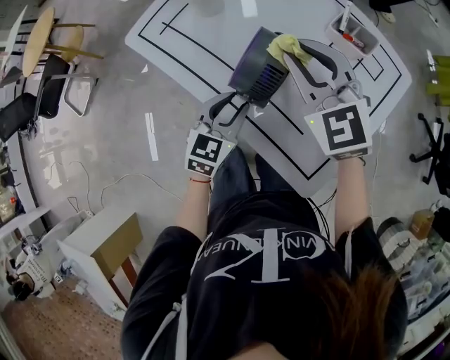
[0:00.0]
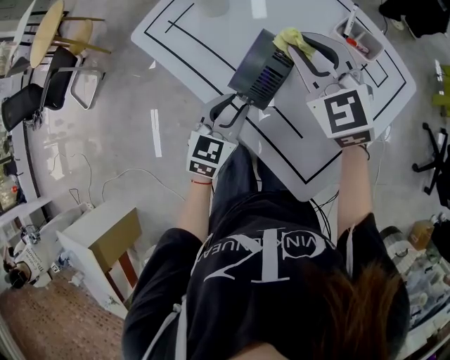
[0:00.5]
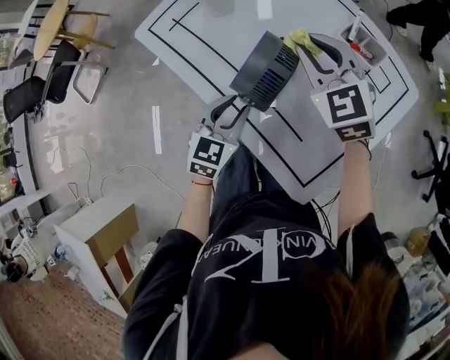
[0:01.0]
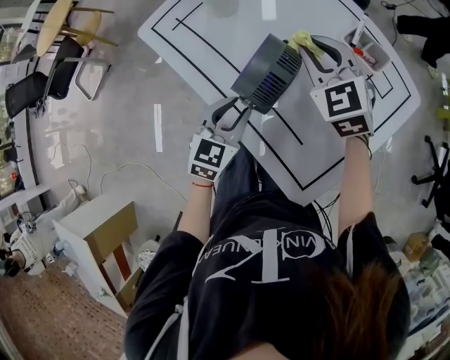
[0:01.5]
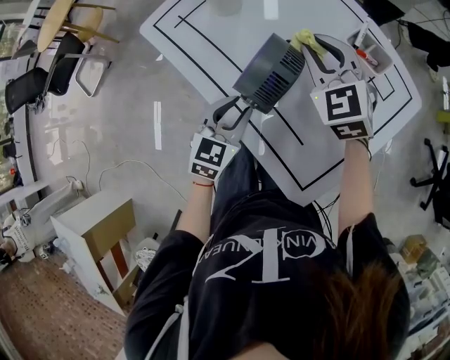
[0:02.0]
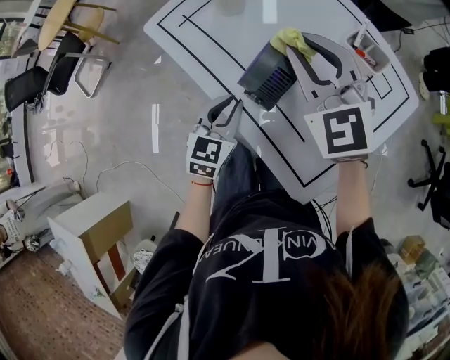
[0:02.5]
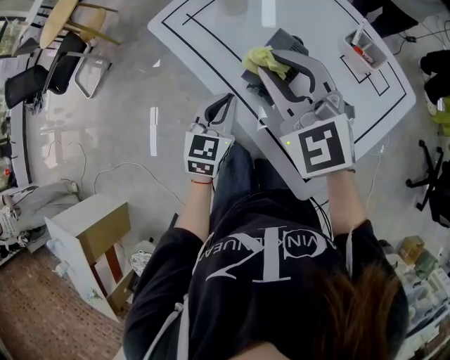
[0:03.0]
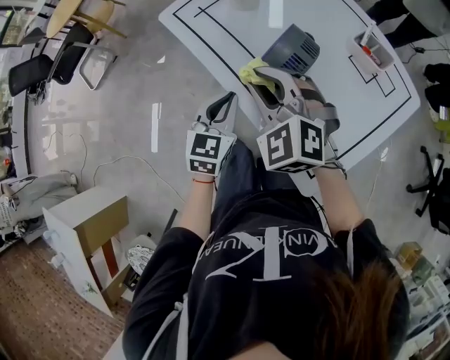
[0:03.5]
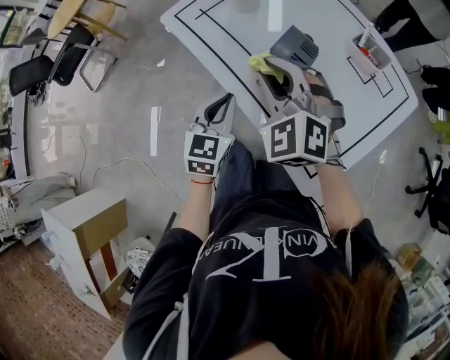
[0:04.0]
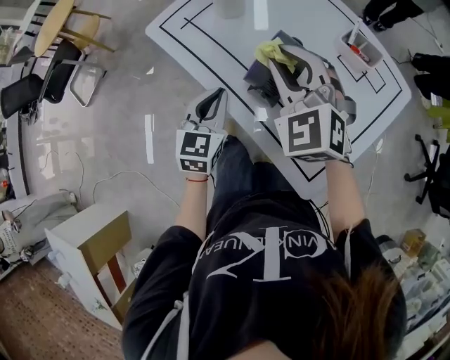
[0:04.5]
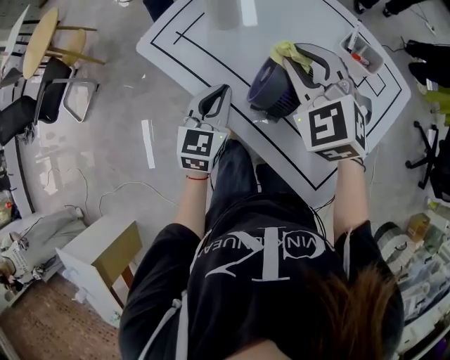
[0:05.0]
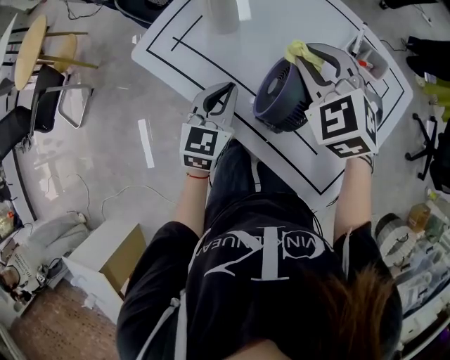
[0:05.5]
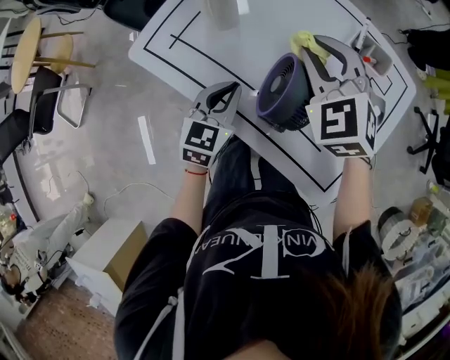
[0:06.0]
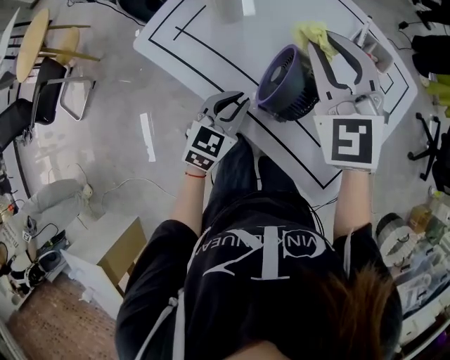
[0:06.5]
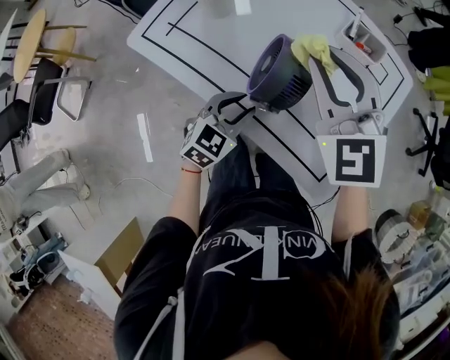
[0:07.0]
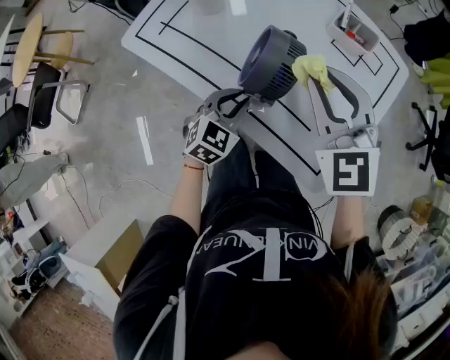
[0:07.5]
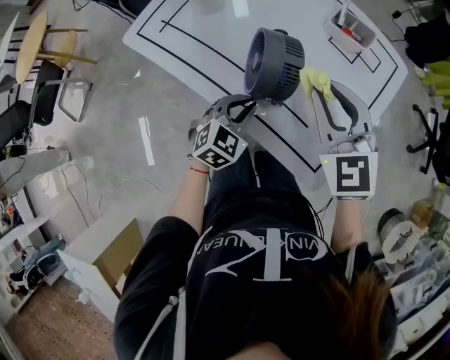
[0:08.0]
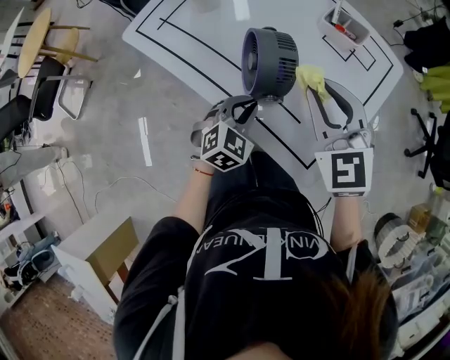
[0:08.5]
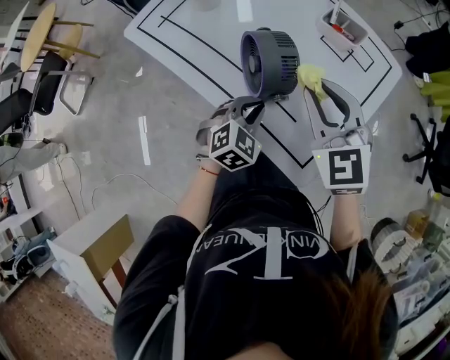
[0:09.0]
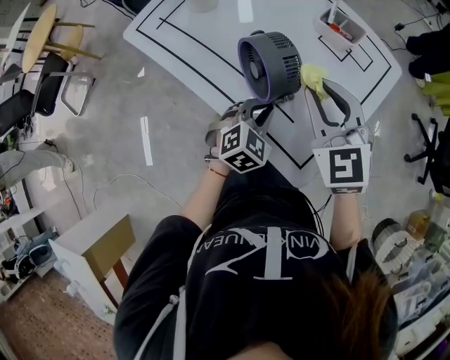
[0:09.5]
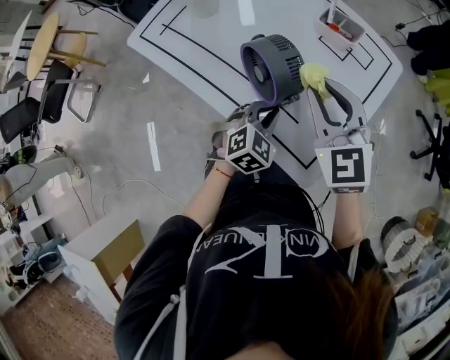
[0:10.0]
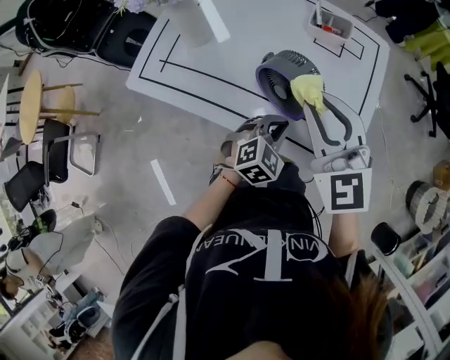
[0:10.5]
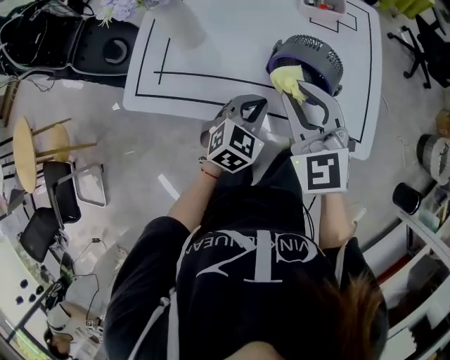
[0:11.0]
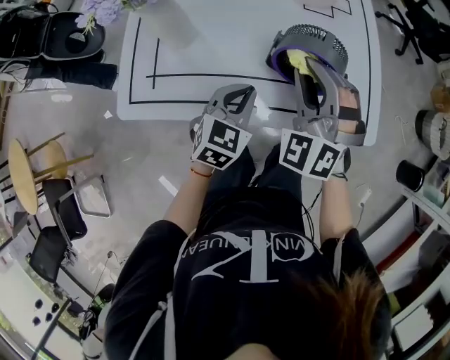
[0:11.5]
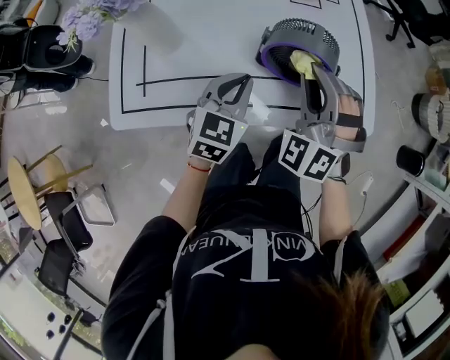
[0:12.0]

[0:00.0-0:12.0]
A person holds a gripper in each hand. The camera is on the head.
0:00.0 to 0:02.0: The right gripper shifts some 5 cm forward.
0:02.0 to 0:04.0: The right gripper moves to the left and backward, about 20 cm, while the left gripper travels to the left by approximately 5 cm, and closes.
0:04.0 to 0:06.0: The right gripper is displaced forward and to the right by approximately 15 cm, and rotates about 20 degrees. Meanwhile the left gripper goes approximately 15 cm forward, and turns by about 20 degrees.
0:06.0 to 0:08.0: The right gripper is displaced backward and to the right by roughly 15 cm; the left gripper heads to the right, backward and downward, covering approximately 15 cm, rotates about 20 degrees, and opens, then closes once more.
0:08.0 to 0:10.0: The left gripper travels to the right by some 10 cm.
0:10.0 to 0:12.0: The right gripper moves about 10 cm, and rotates roughly 60 degrees, while the left gripper ends up approximately 20 cm from where it was, and rotates some 30 degrees.

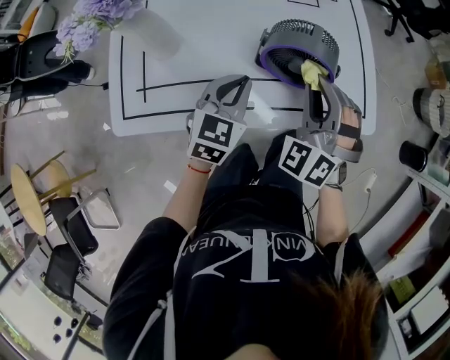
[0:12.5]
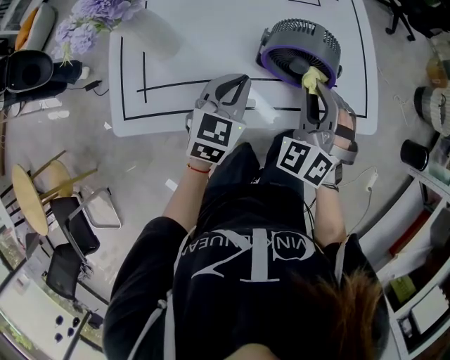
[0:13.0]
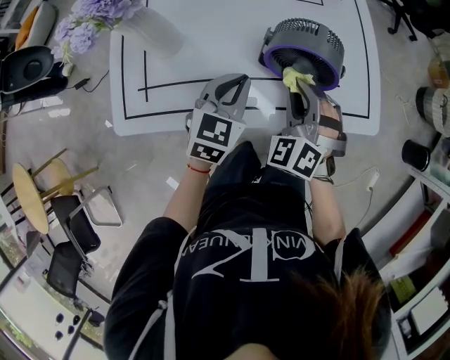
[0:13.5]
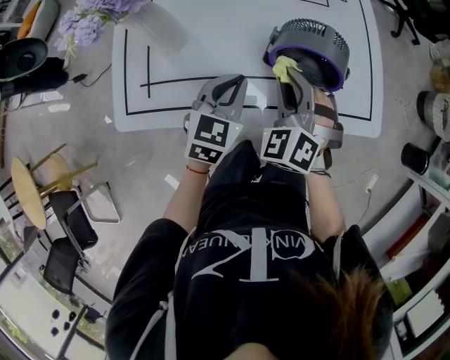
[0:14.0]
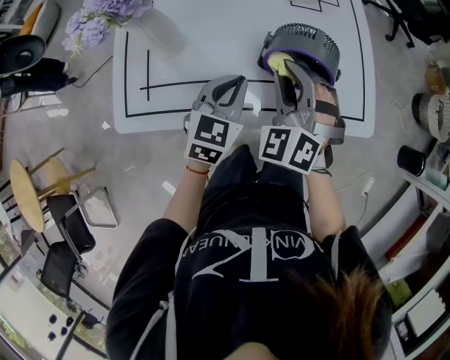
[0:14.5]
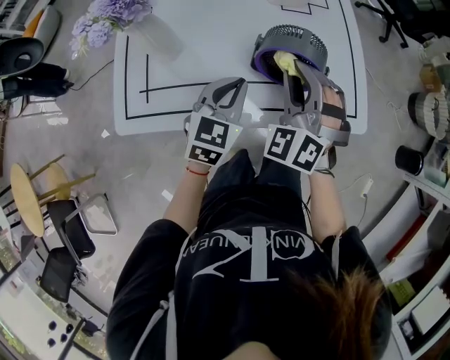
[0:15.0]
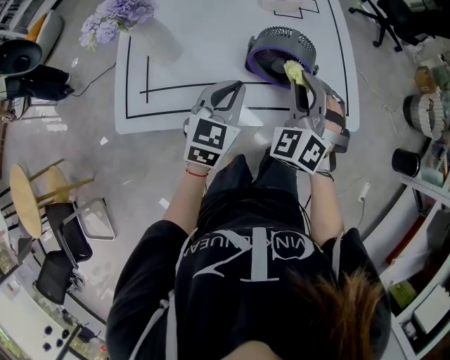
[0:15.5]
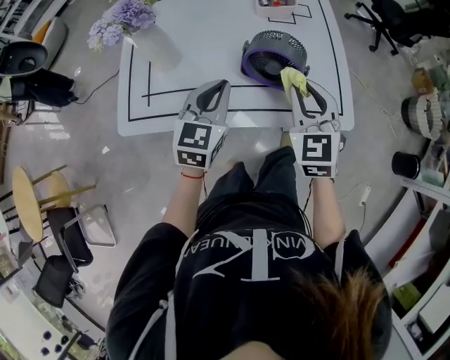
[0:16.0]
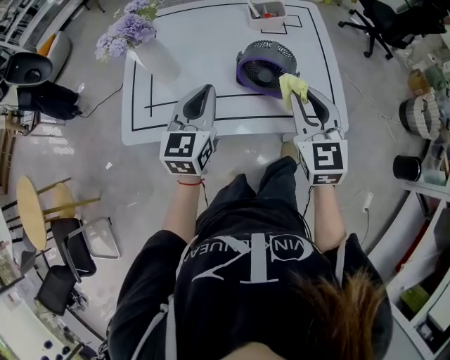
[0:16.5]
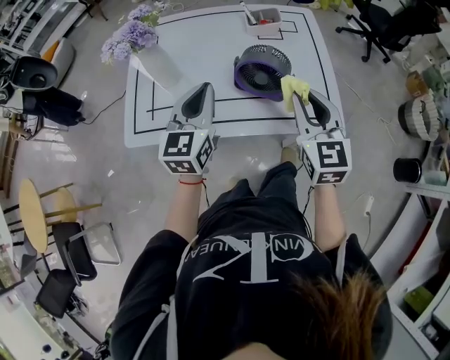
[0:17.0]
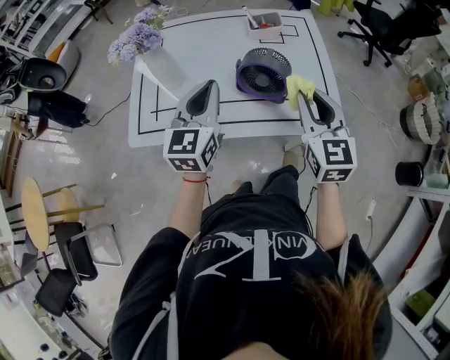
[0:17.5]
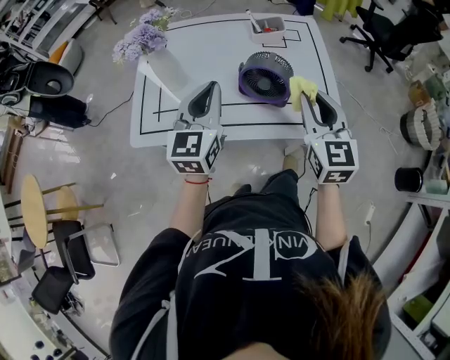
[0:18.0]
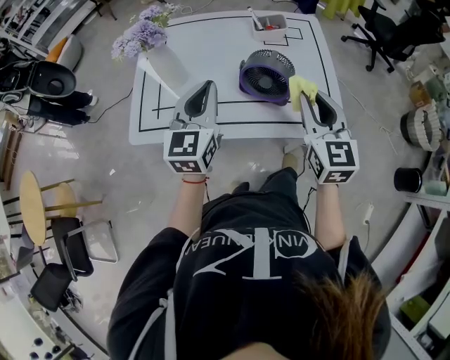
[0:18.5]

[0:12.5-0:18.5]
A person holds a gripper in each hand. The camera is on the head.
0:12.5 to 0:14.5: The right gripper is displaced to the left by some 5 cm.
0:14.5 to 0:16.5: The right gripper heads to the right, upward and backward, covering roughly 15 cm, and rotates around the line of its fingers by roughly 40 degrees, clockwise from behind. Meanwhile the left gripper moves upward, roughly 10 cm, and swivels approximately 20 degrees.
0:16.5 to 0:18.5: The left gripper travels upward by some 5 cm.

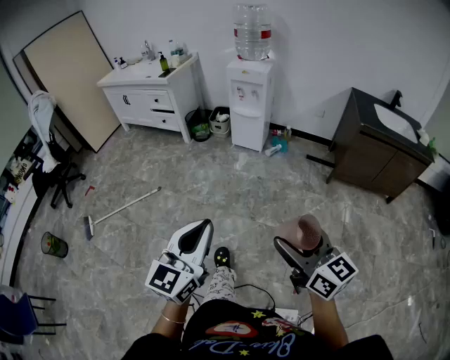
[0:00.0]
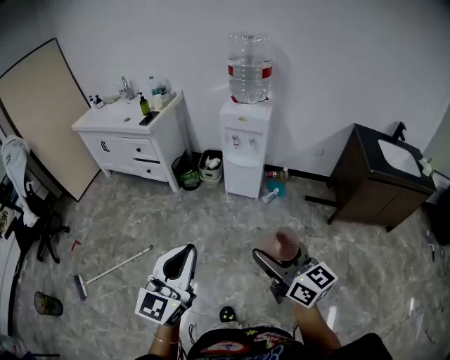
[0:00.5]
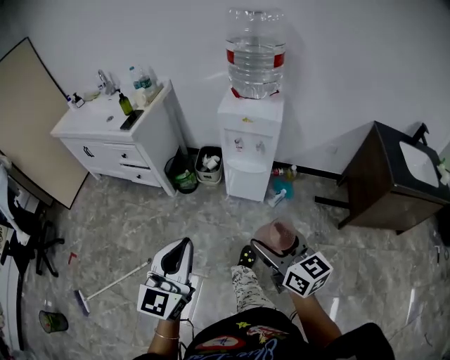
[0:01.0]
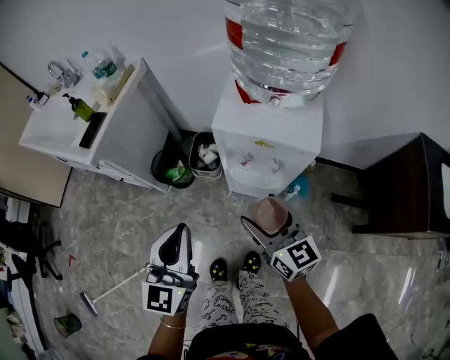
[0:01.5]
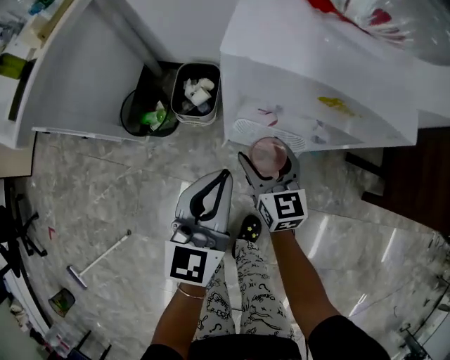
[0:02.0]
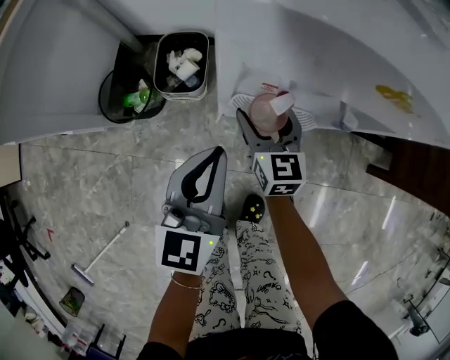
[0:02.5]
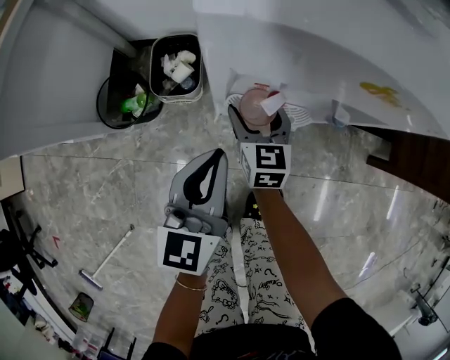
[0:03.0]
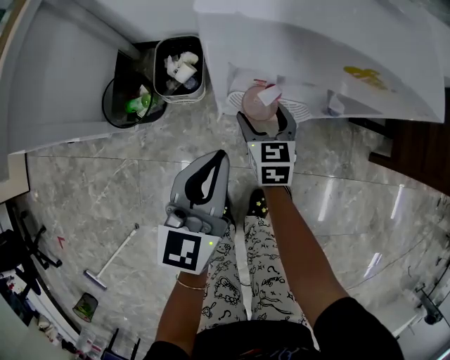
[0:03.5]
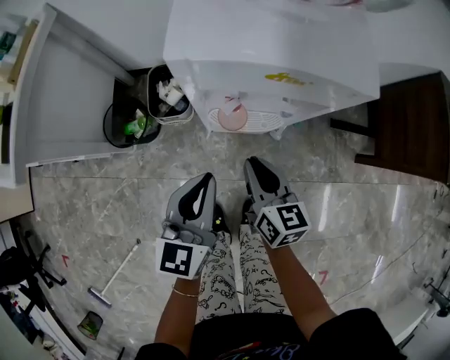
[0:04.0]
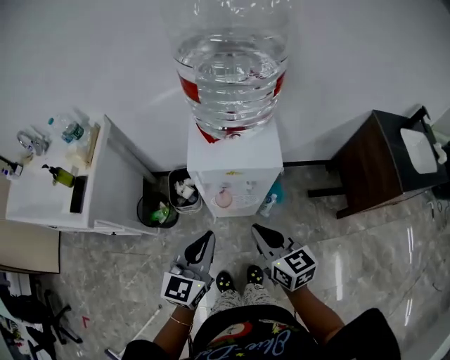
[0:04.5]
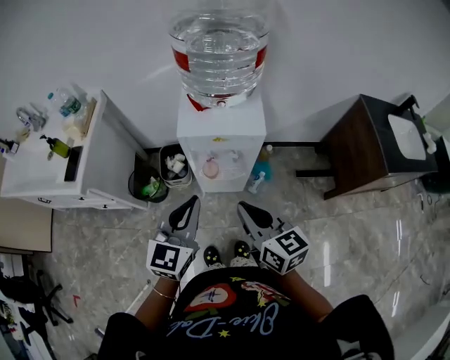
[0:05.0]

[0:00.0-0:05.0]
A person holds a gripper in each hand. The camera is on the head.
0:00.0 to 0:02.5: The two grippers travel together, forward, about 1 m. The right gripper goes about 50 cm downward, and rotates approximately 30 degrees.
0:02.5 to 0:05.0: The right gripper travels upward and backward by about 50 cm, and closes, while the left gripper travels upward by about 30 cm.

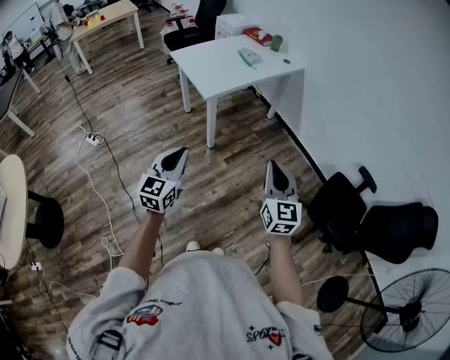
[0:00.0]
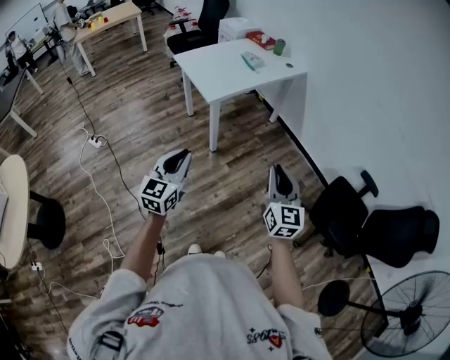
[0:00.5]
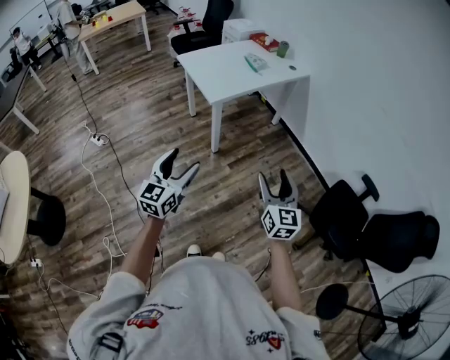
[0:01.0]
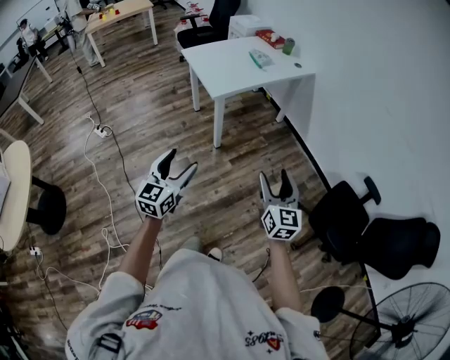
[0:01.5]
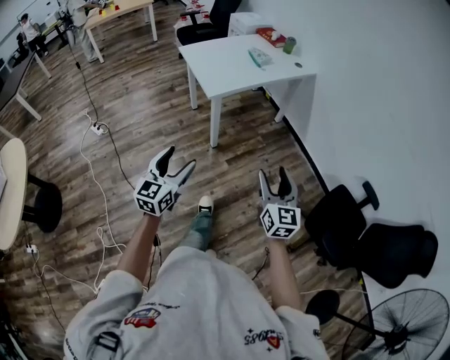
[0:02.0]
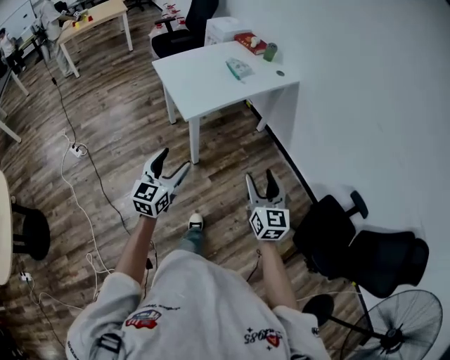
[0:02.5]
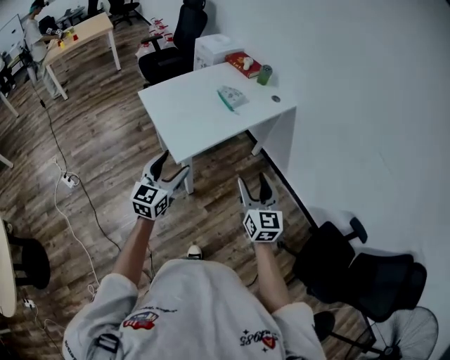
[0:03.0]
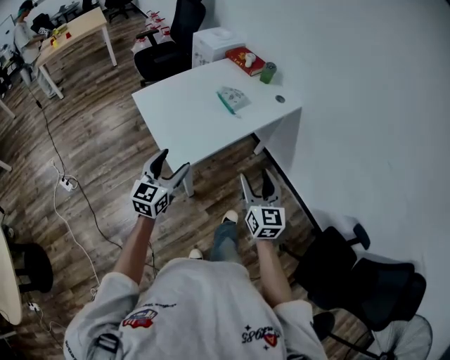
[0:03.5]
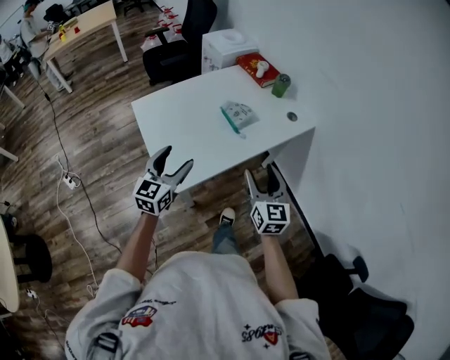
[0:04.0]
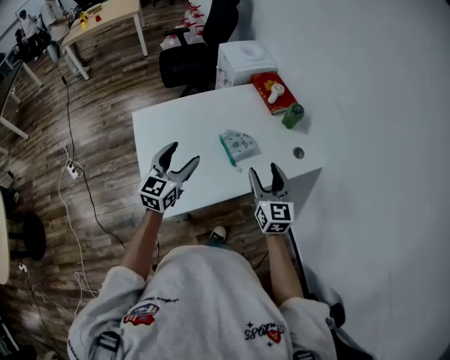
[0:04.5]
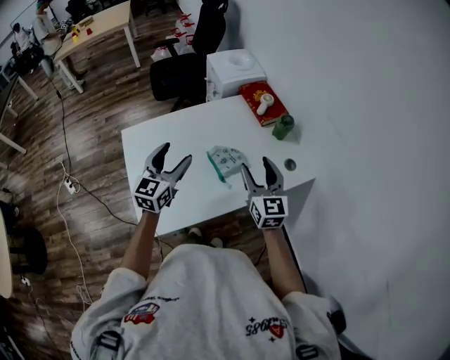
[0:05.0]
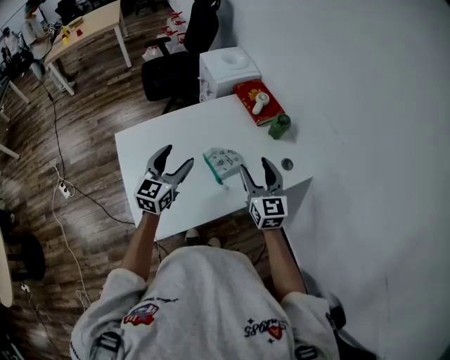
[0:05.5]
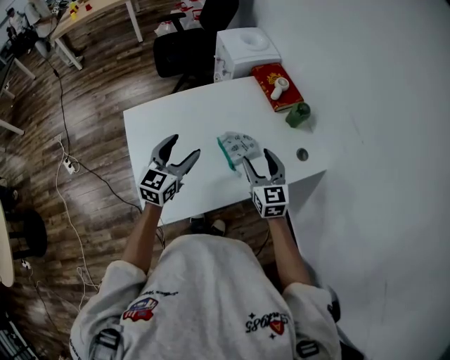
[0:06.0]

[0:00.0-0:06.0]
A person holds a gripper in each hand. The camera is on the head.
0:00.0 to 0:02.0: The right gripper moves downward, about 5 cm, and opens. The left gripper opens its fingers.
0:02.0 to 0:04.0: The pair of grippers is taken forward, approximately 70 cm.
0:04.0 to 0:06.0: Both grippers travel together forward, about 30 cm. The right gripper changes its angle by approximately 20 degrees.
